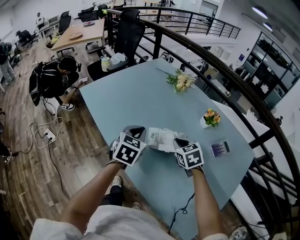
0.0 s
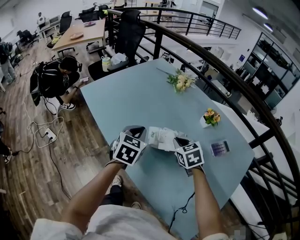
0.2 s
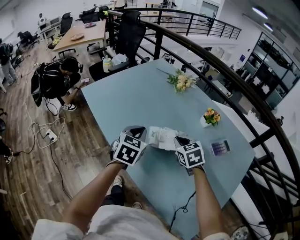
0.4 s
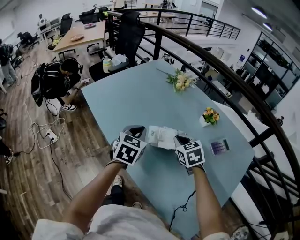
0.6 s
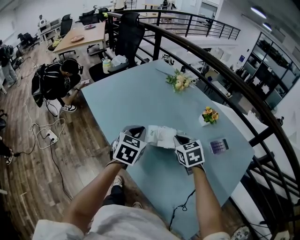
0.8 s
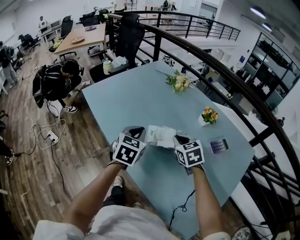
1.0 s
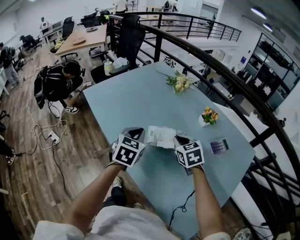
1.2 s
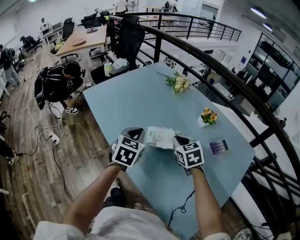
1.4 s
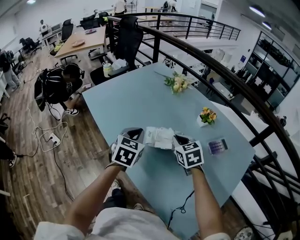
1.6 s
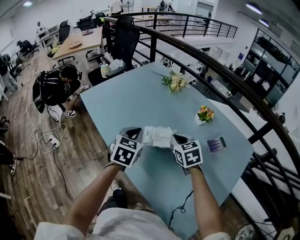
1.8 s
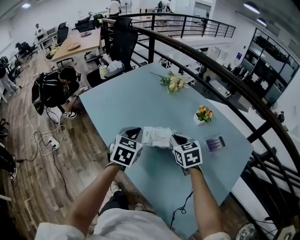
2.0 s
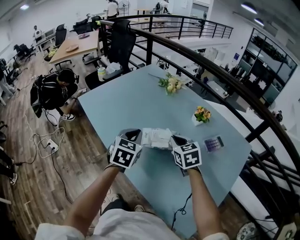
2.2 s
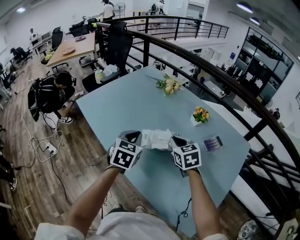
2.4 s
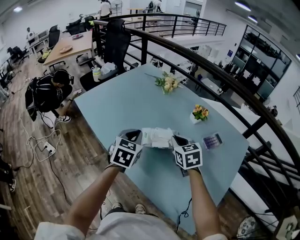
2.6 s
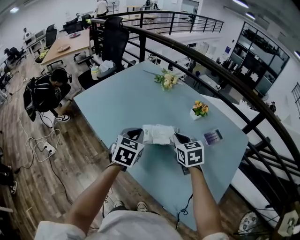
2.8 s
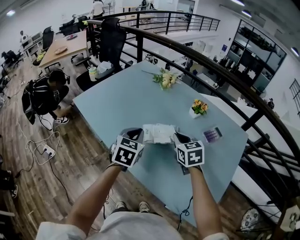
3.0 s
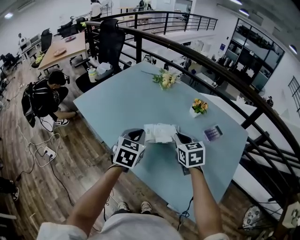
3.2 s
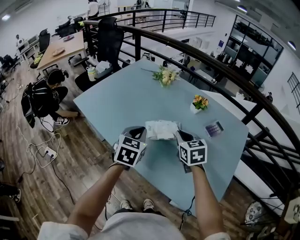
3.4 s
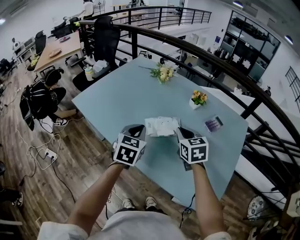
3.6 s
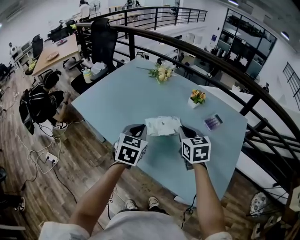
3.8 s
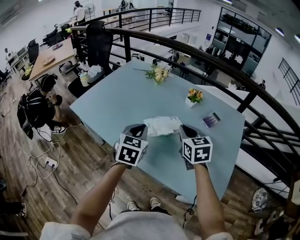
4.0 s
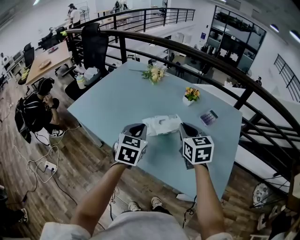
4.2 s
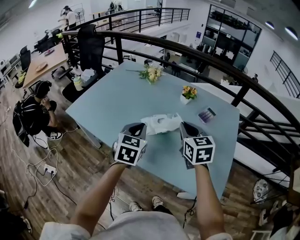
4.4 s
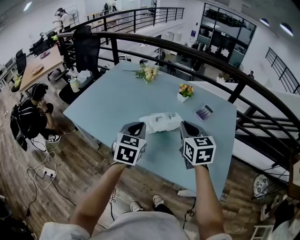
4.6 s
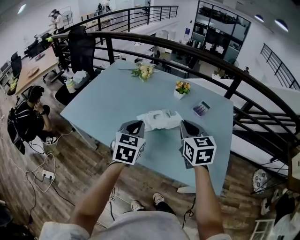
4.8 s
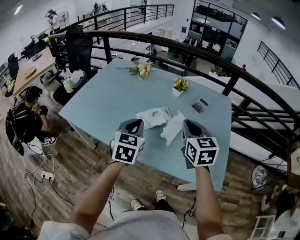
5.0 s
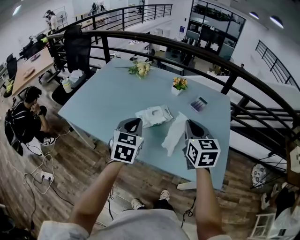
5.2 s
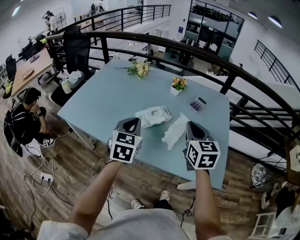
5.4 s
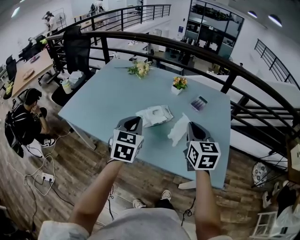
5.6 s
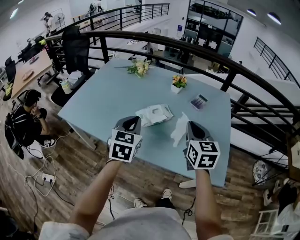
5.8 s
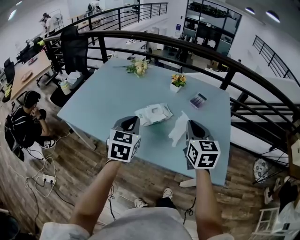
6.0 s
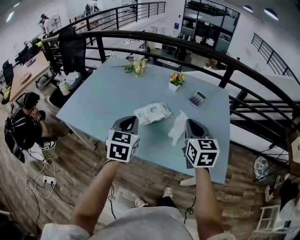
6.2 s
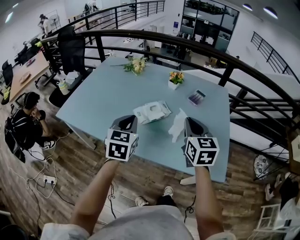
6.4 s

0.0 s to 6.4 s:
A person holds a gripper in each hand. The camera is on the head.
0.0 to 1.6 s: The grippers make only small movements.
1.6 to 3.2 s: The grippers make only small movements.
3.2 to 4.8 s: The right gripper heads backward and upward, covering approximately 10 cm, and rotates roughly 20 degrees.
4.8 to 6.4 s: The grippers make only small movements.

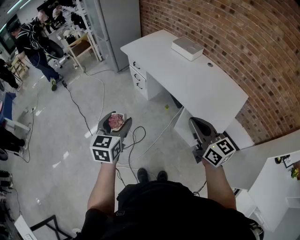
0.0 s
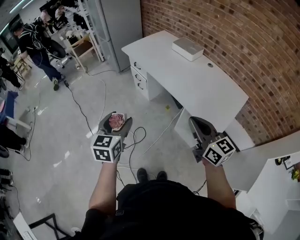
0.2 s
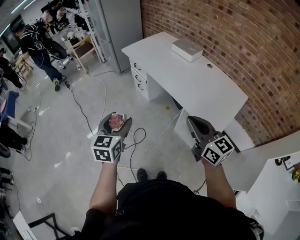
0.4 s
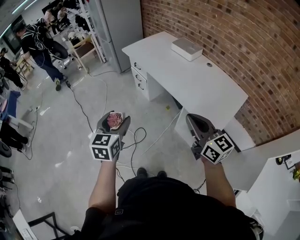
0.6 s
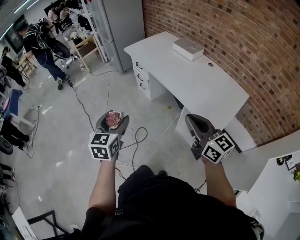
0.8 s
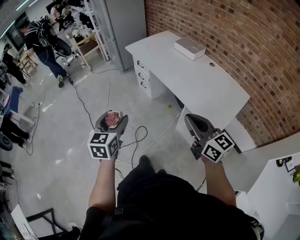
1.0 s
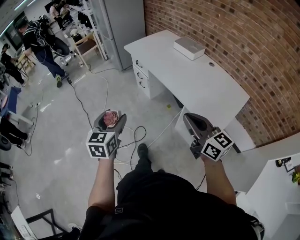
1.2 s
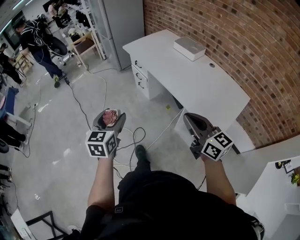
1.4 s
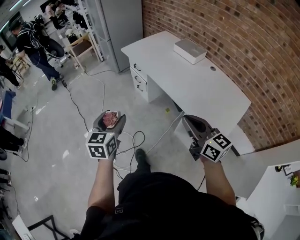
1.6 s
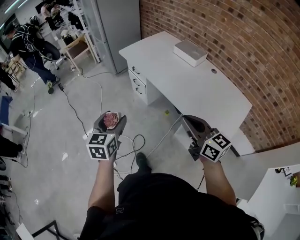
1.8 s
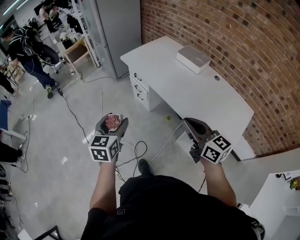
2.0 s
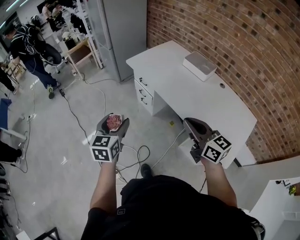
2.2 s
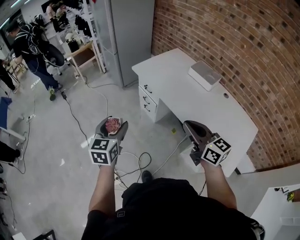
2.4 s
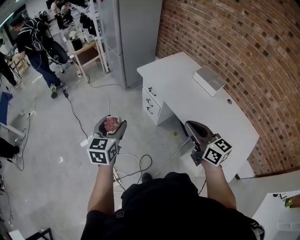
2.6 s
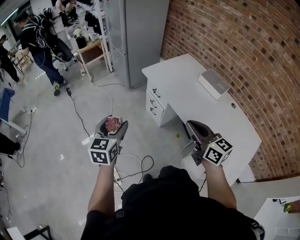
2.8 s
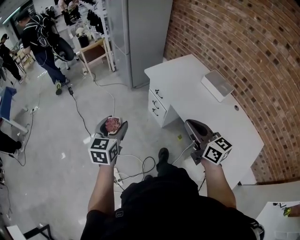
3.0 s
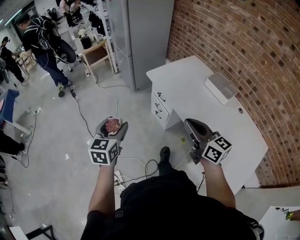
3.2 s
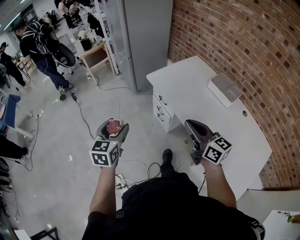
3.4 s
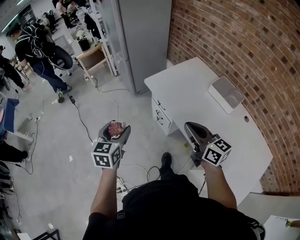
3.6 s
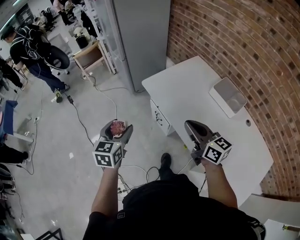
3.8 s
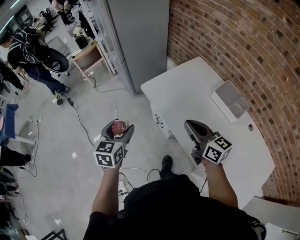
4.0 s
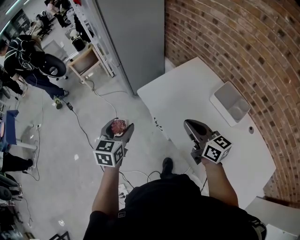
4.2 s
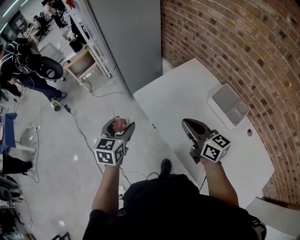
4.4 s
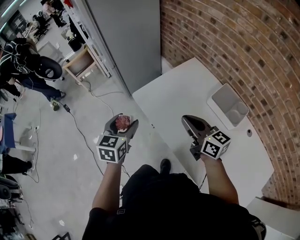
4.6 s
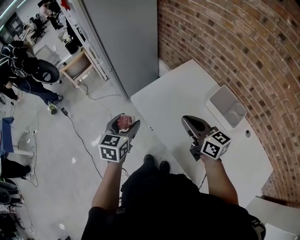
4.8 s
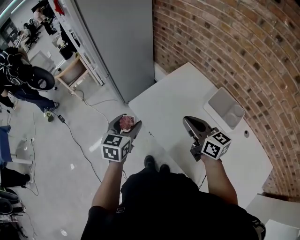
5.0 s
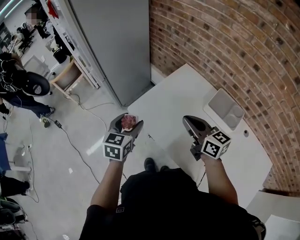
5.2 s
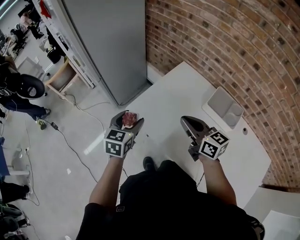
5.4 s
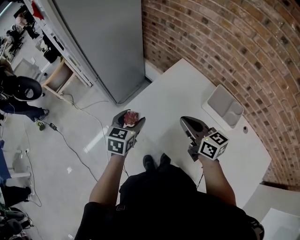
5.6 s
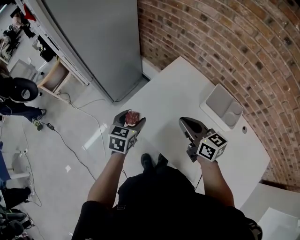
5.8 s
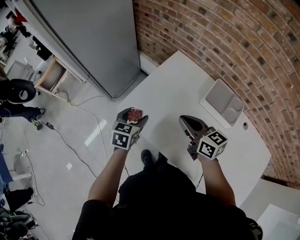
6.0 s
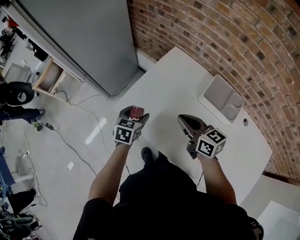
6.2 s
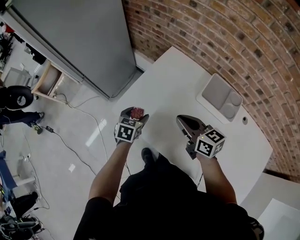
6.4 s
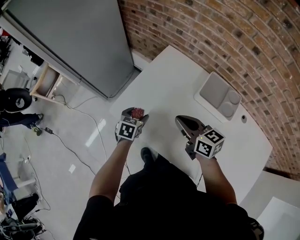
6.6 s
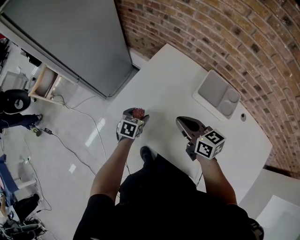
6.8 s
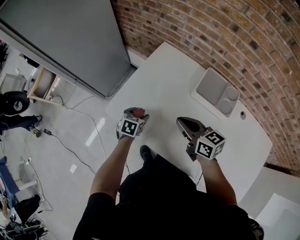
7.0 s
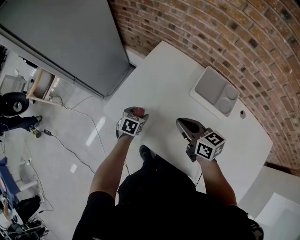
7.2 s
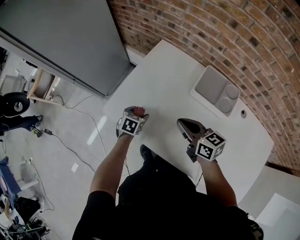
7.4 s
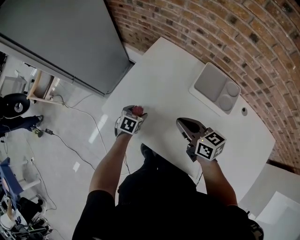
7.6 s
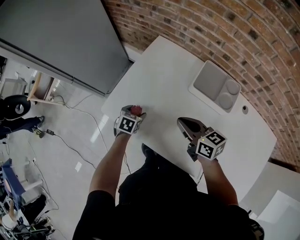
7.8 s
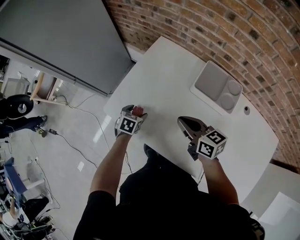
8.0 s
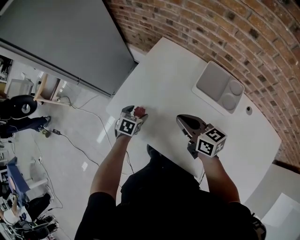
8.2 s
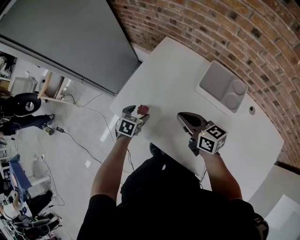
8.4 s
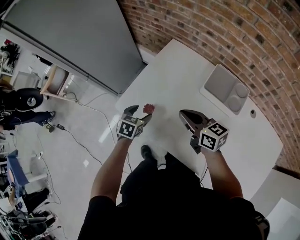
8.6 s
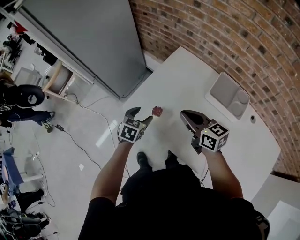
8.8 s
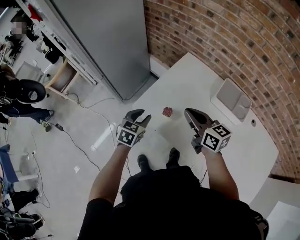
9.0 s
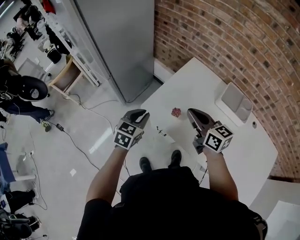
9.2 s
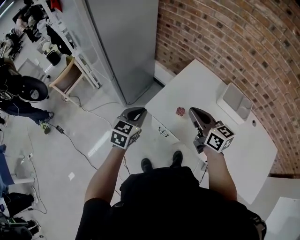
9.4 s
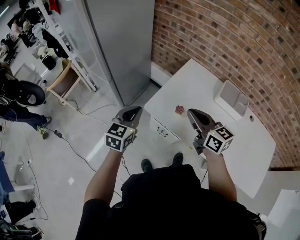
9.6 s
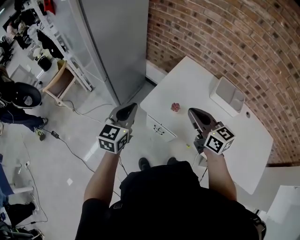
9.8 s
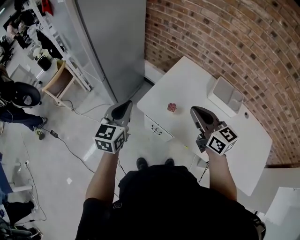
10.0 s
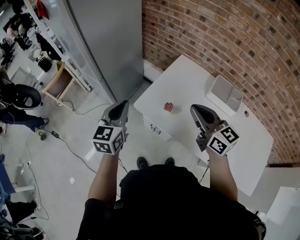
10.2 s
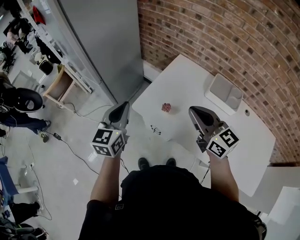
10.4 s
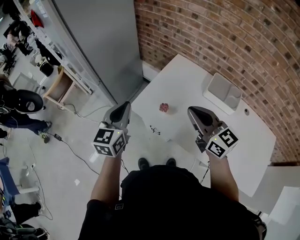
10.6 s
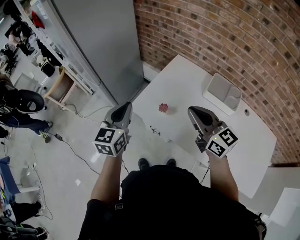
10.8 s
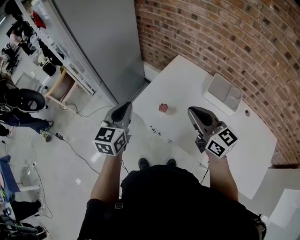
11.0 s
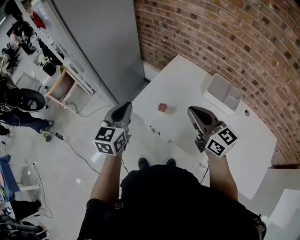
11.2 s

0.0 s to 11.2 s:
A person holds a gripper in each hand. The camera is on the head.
0.0 to 1.6 s: The two grippers go roughly 5 cm forward.
1.6 to 3.2 s: The right gripper shifts approximately 35 cm forward. The left gripper moves forward and to the left, roughly 30 cm.
3.2 to 4.8 s: Both grippers move forward and to the right, about 35 cm.
4.8 to 6.4 s: The left gripper heads downward, forward and to the right, covering approximately 25 cm, and changes its angle by approximately 30 degrees; the right gripper moves forward and downward, about 10 cm.
6.4 to 8.0 s: The left gripper is displaced downward by approximately 10 cm, while the right gripper is displaced to the right by approximately 5 cm.
8.0 to 9.6 s: The left gripper travels upward and to the left by about 35 cm, points its fingers approximately 40 degrees further upward, and closes; the right gripper heads to the left and upward, covering some 25 cm.
9.6 to 11.2 s: The right gripper goes approximately 10 cm to the right. The left gripper goes approximately 10 cm to the right and upward.

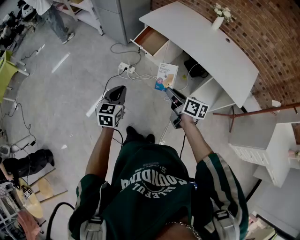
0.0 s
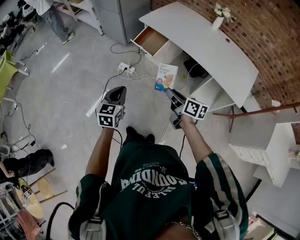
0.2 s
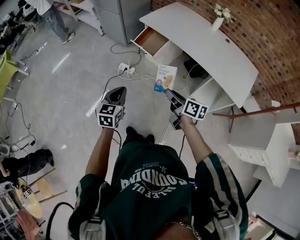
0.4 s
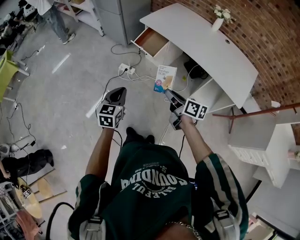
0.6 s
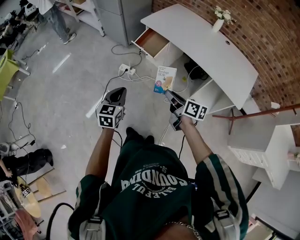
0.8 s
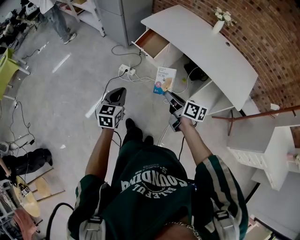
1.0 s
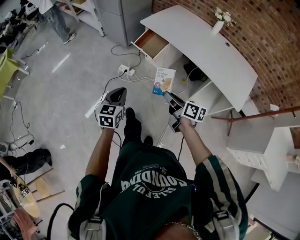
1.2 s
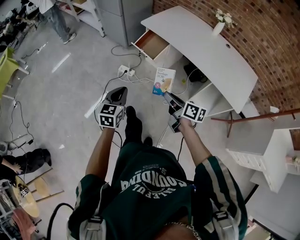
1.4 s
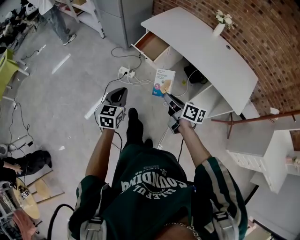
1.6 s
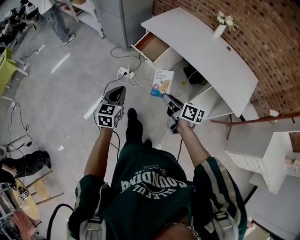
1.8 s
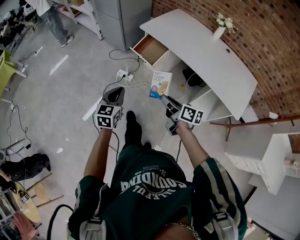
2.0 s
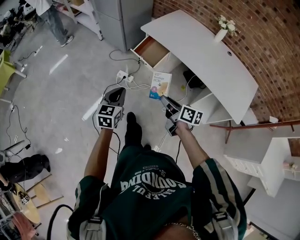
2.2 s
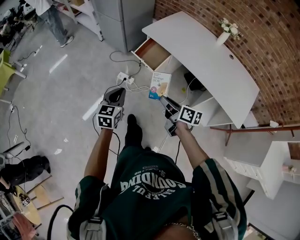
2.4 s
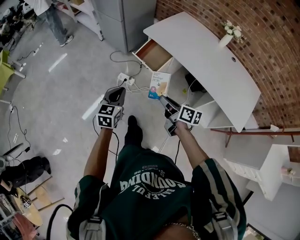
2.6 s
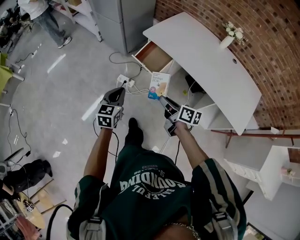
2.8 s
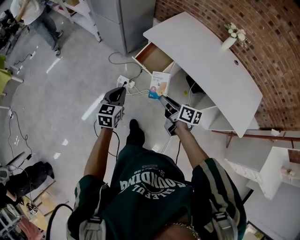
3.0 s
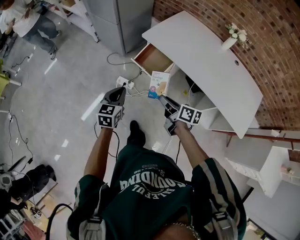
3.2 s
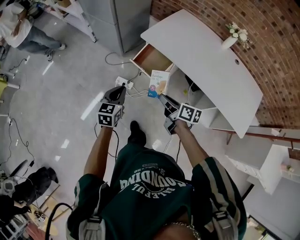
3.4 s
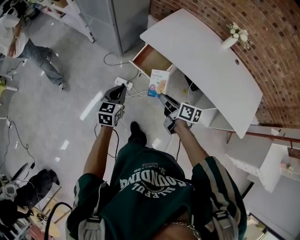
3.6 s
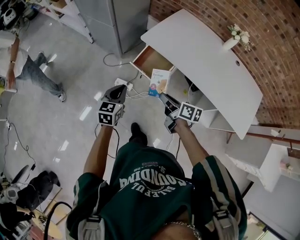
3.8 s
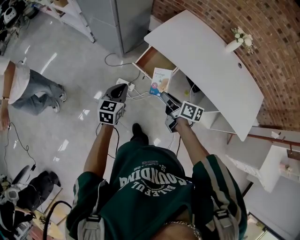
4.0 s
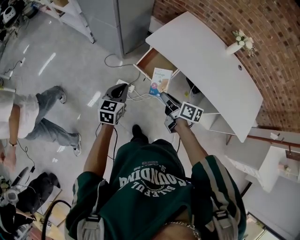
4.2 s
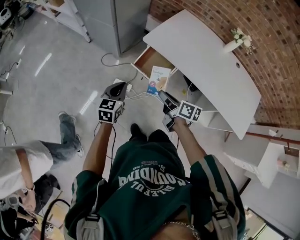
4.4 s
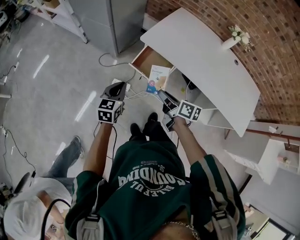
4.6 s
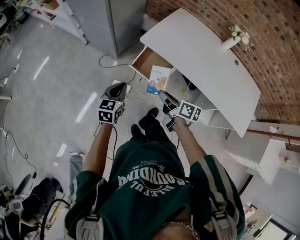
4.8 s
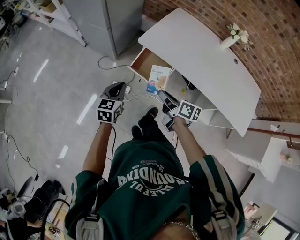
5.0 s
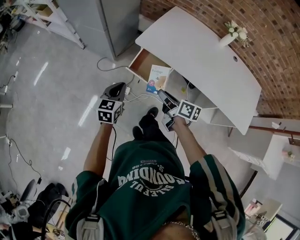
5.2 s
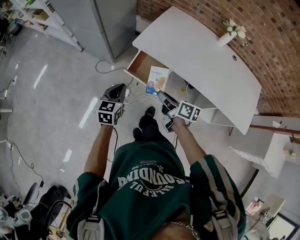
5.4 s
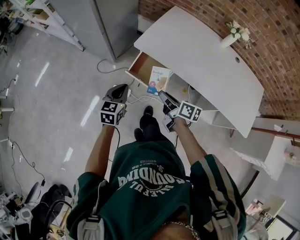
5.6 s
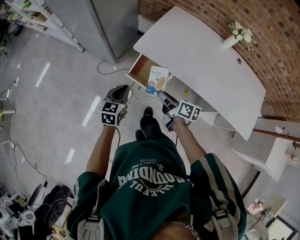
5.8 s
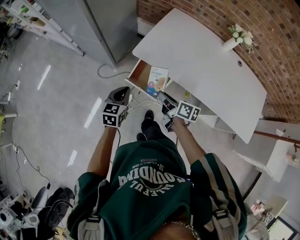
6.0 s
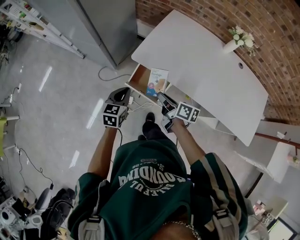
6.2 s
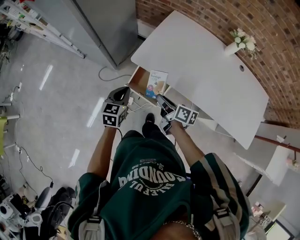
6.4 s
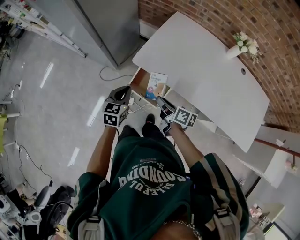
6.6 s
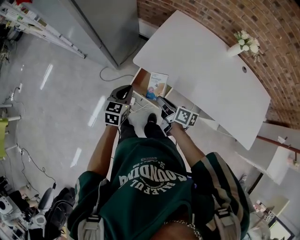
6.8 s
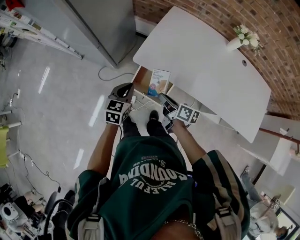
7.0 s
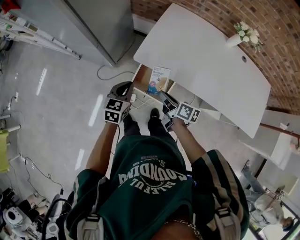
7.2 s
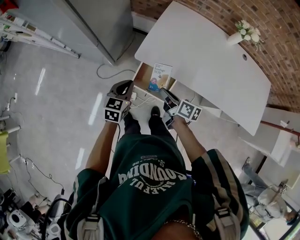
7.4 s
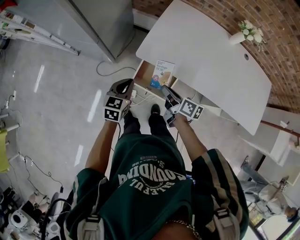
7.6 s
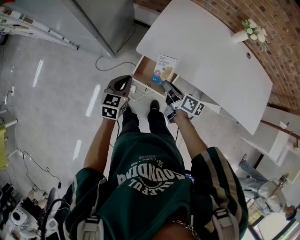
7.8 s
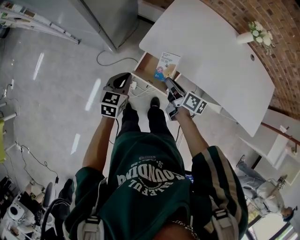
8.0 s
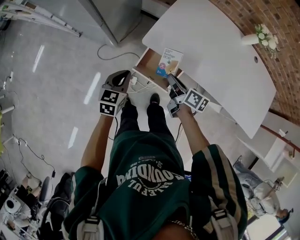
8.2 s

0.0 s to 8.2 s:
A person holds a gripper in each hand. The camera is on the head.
0.0 to 1.6 s: There are only small adjustments of the grippers.
1.6 to 3.2 s: Both grippers travel together forward, some 25 cm.
3.2 to 5.0 s: The two grippers go some 15 cm forward.
5.0 to 6.6 s: The left gripper goes some 15 cm forward and to the right; the right gripper travels forward by approximately 15 cm.
6.6 to 8.2 s: The left gripper travels to the left by roughly 5 cm. Meanwhile the right gripper is displaced forward by some 5 cm.
